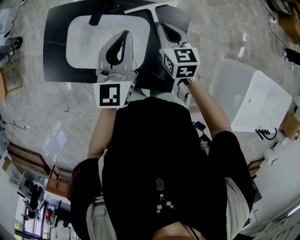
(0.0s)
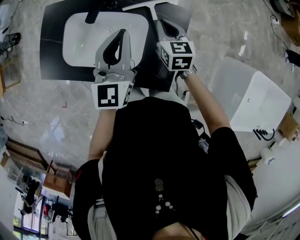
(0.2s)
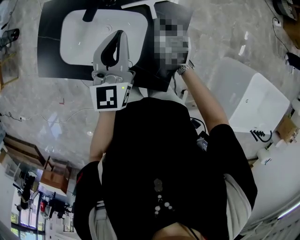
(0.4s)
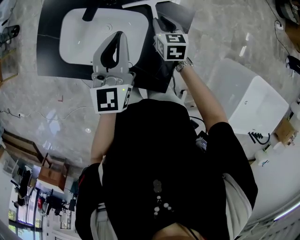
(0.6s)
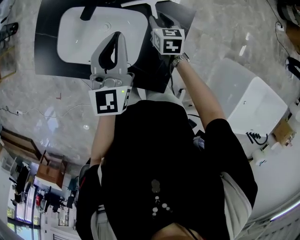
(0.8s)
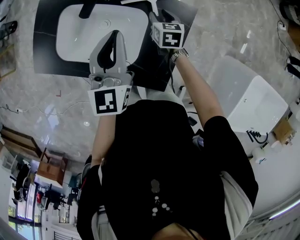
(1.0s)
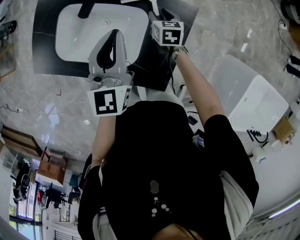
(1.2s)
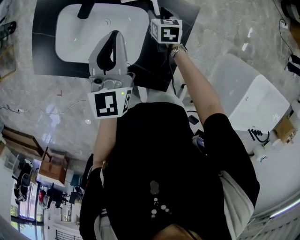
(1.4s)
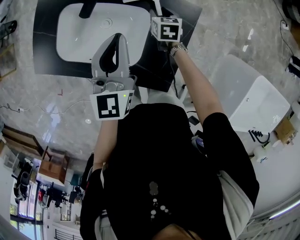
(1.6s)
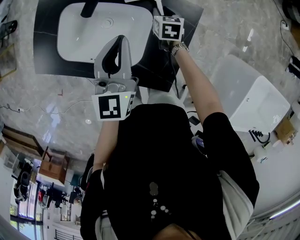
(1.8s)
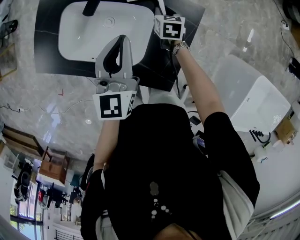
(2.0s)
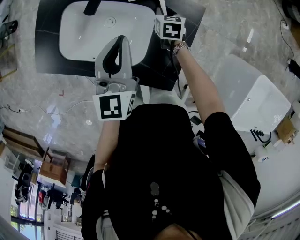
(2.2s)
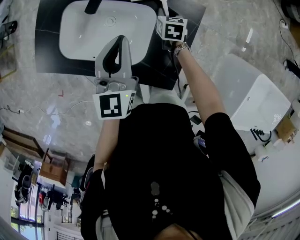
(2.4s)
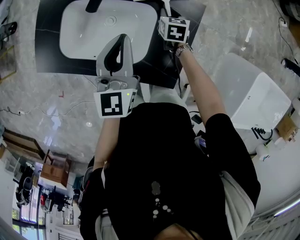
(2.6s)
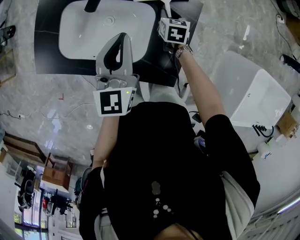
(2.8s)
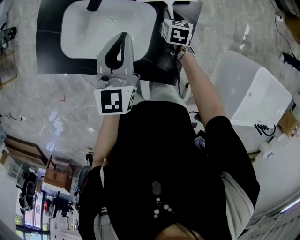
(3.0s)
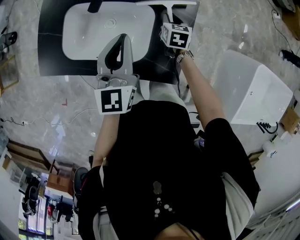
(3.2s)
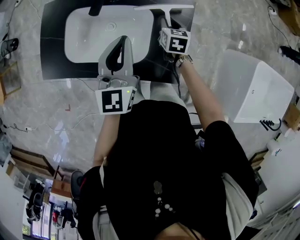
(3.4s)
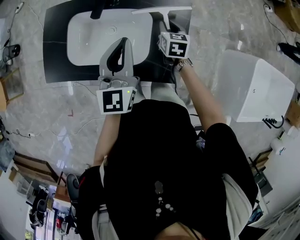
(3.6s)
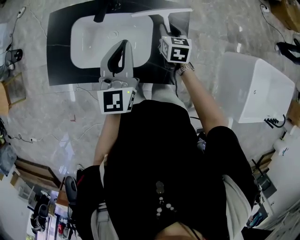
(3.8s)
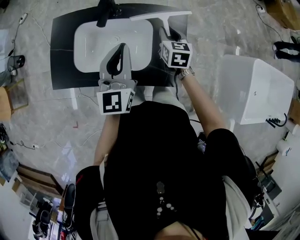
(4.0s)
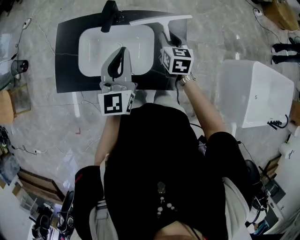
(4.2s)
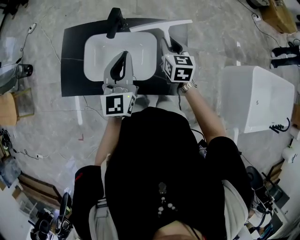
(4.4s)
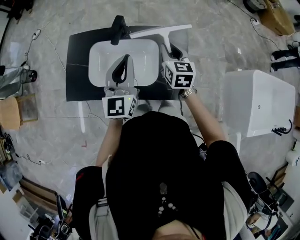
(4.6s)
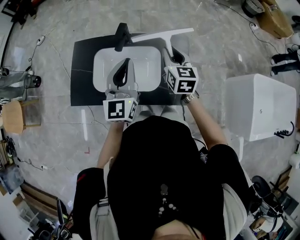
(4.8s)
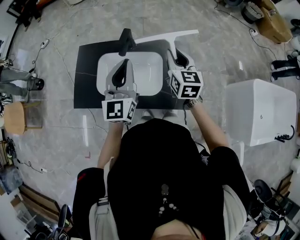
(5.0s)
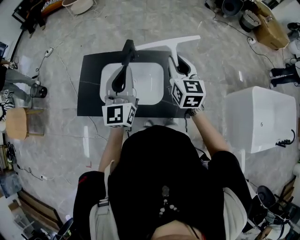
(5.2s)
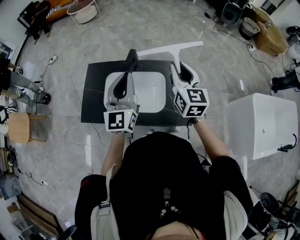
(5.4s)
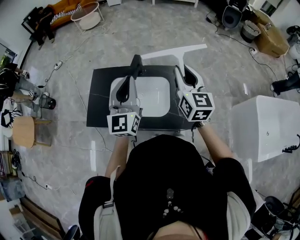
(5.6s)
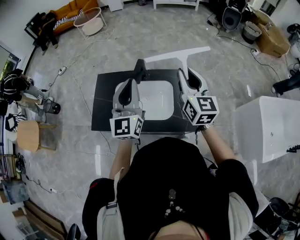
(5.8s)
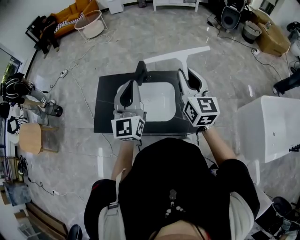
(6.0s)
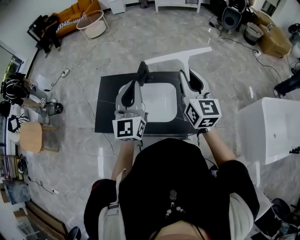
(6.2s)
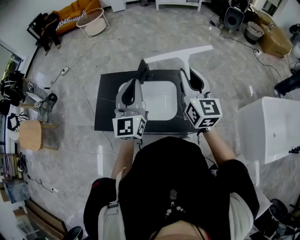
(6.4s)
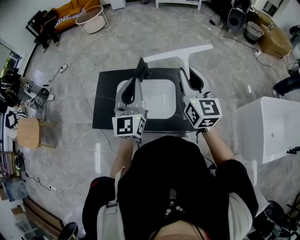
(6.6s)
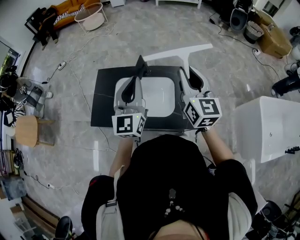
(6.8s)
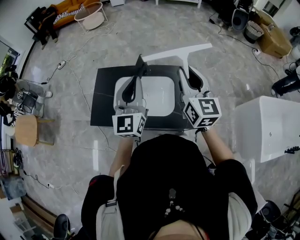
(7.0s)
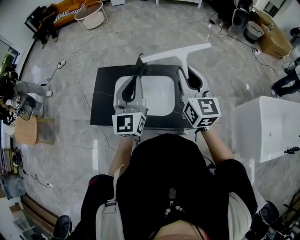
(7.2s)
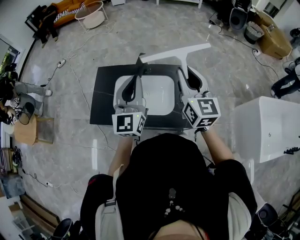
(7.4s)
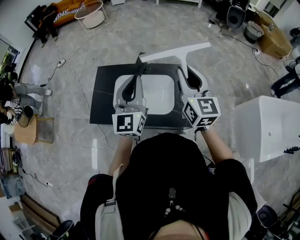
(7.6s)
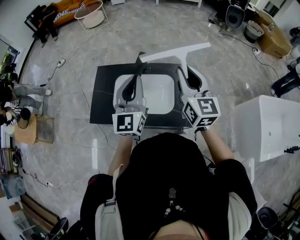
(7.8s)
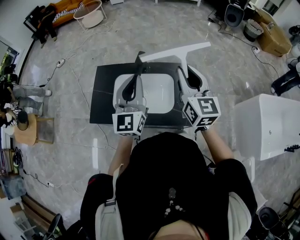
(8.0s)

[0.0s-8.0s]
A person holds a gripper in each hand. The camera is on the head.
0.0s to 1.6s: The left gripper travels downward by roughly 5 cm, while the right gripper heads downward, covering about 20 cm, swivels about 20 degrees, and opens.
1.6s to 3.2s: The left gripper changes place by some 5 cm. The right gripper goes roughly 5 cm backward.
3.2s to 4.8s: The left gripper goes approximately 15 cm upward, to the left and backward. Meanwhile the right gripper moves upward, roughly 25 cm, and rotates some 30 degrees.
4.8s to 6.4s: The left gripper travels upward by some 10 cm. The right gripper heads upward, covering about 20 cm, and swivels some 20 degrees.
6.4s to 8.0s: There are only small adjustments of the grippers.

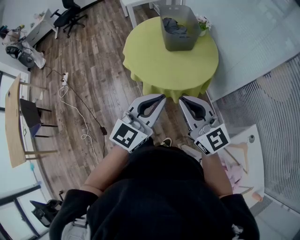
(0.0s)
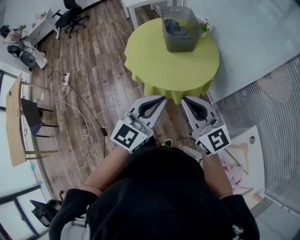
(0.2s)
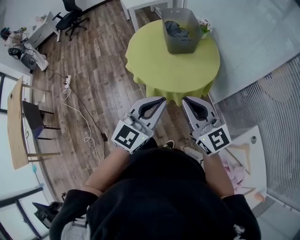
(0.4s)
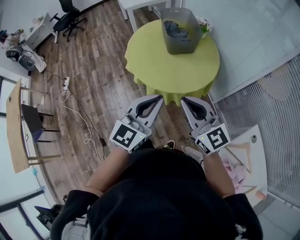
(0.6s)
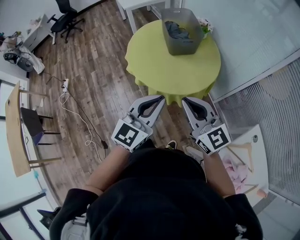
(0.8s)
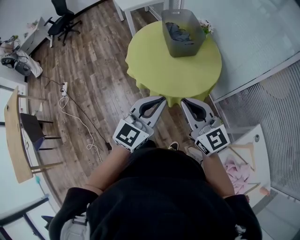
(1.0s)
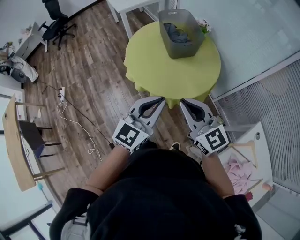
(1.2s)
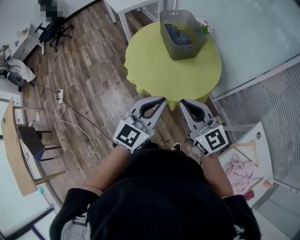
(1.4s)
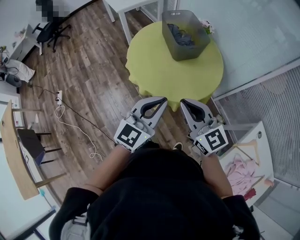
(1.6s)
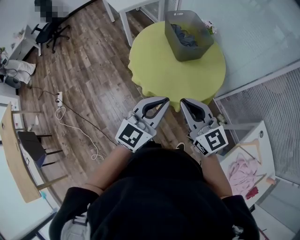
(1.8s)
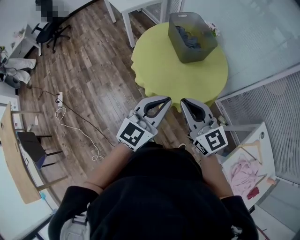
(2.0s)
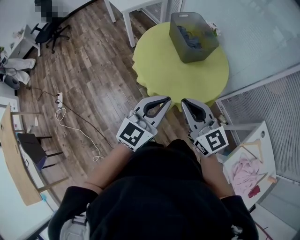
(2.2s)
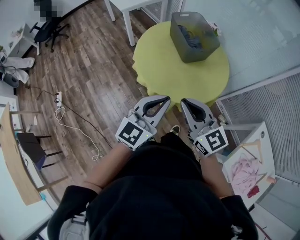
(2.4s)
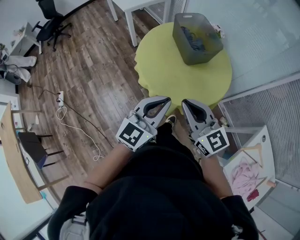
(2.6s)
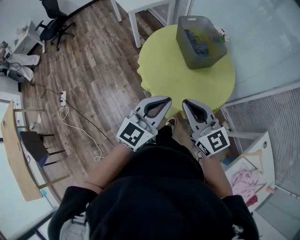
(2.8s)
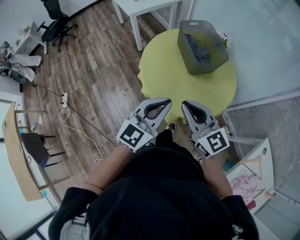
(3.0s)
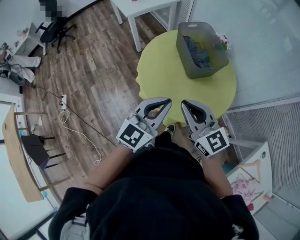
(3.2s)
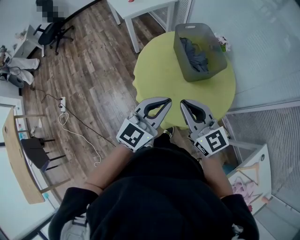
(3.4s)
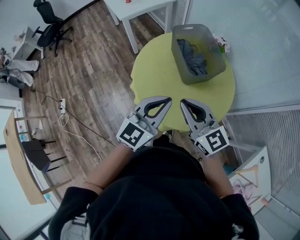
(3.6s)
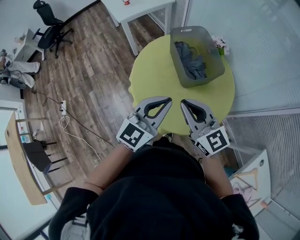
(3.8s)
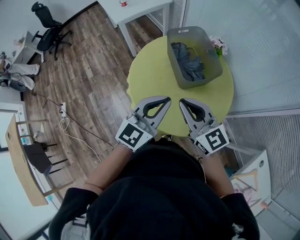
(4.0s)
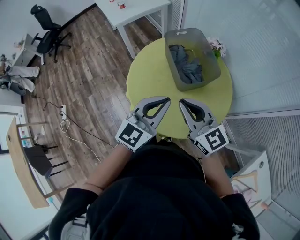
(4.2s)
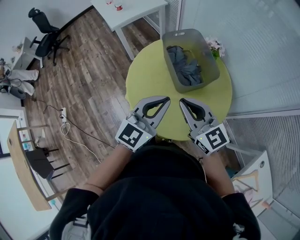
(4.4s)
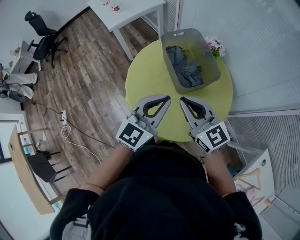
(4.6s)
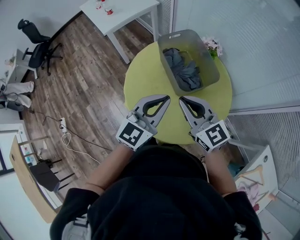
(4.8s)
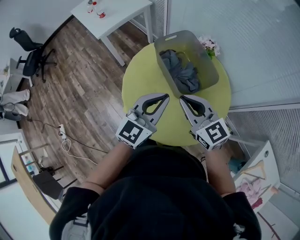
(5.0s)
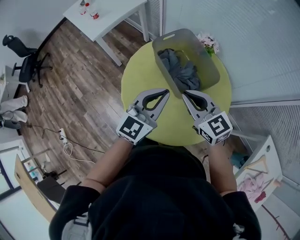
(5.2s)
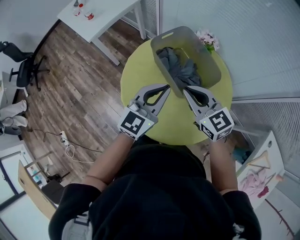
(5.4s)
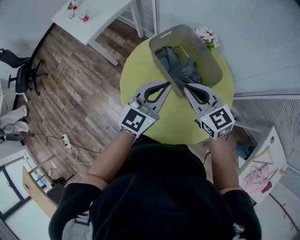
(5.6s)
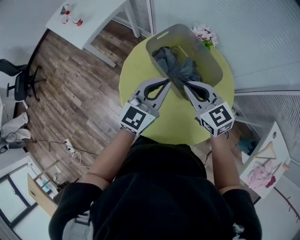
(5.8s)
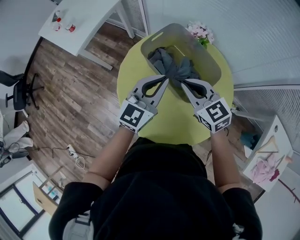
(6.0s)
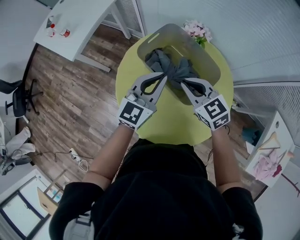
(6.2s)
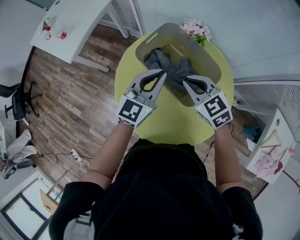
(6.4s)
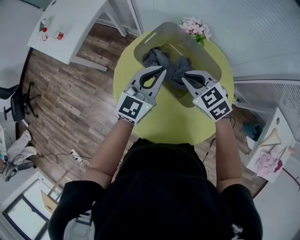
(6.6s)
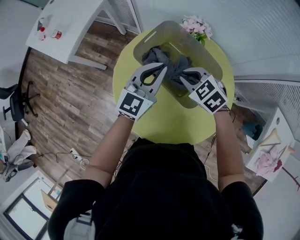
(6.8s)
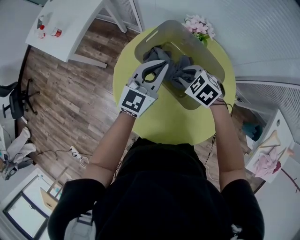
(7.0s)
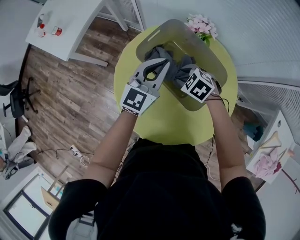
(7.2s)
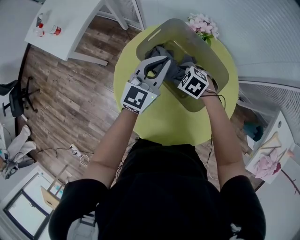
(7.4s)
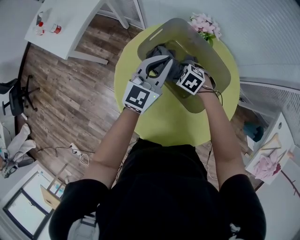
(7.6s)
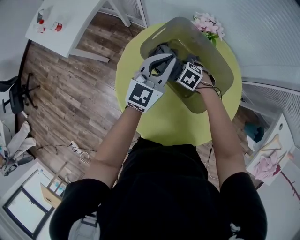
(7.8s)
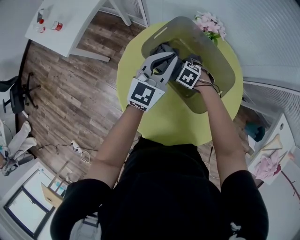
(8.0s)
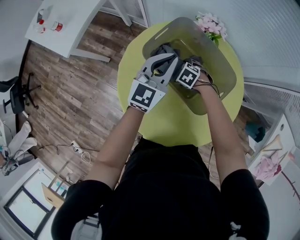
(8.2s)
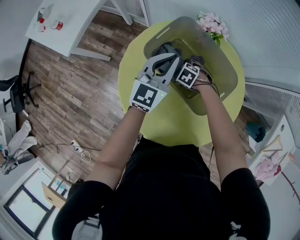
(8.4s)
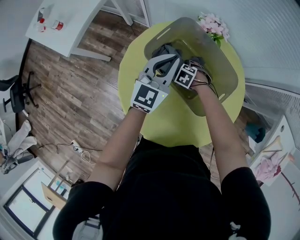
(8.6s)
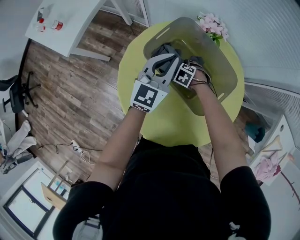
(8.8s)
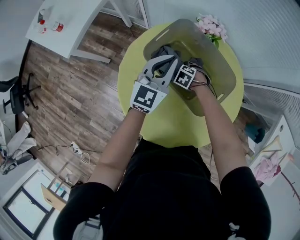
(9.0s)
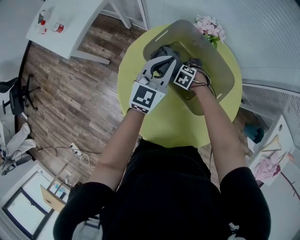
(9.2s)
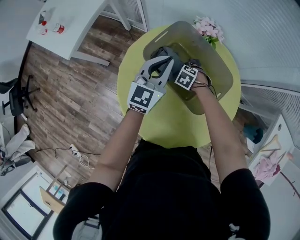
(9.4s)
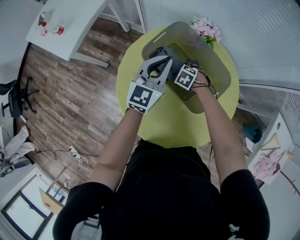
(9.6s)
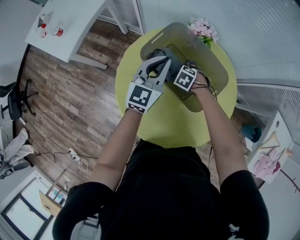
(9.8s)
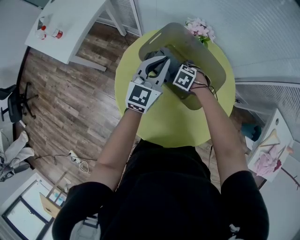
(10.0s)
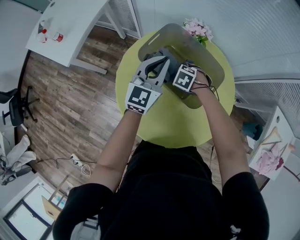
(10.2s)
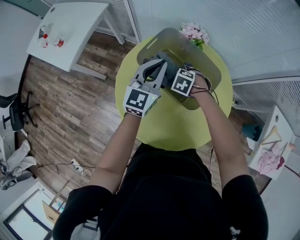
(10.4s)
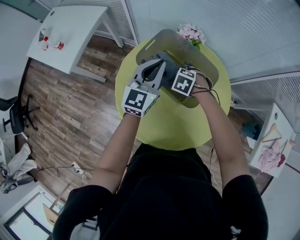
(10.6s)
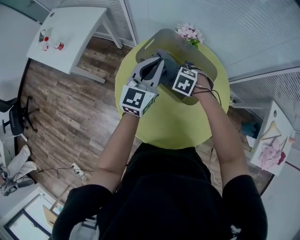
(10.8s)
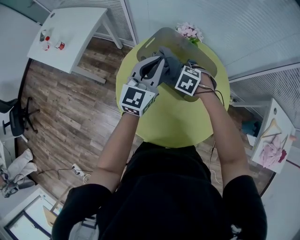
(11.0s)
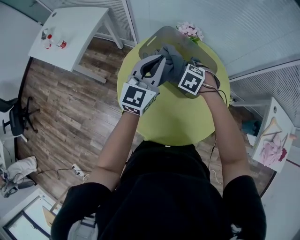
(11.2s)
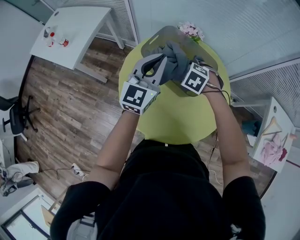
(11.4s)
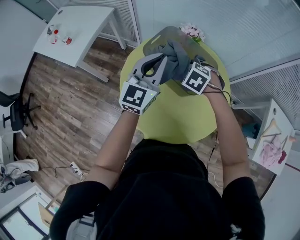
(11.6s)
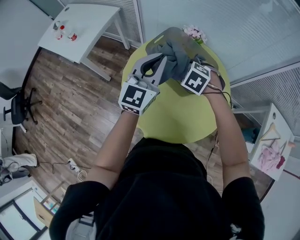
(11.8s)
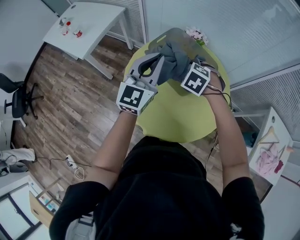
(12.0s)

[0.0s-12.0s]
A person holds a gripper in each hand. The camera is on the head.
0.0s to 1.6s: Both grippers move to the left and forward, about 20 cm.
1.6s to 3.0s: Both grippers move forward and to the left, roughly 15 cm.
3.0s to 4.4s: Both grippers move forward and to the right, roughly 20 cm.
4.4s to 6.0s: The left gripper travels forward by approximately 20 cm, and turns by some 20 degrees. The right gripper goes approximately 20 cm forward and downward, and rotates approximately 30 degrees.
6.0s to 7.6s: The right gripper goes some 25 cm downward, tips its fingers downward by about 40 degrees, and opens its fingers; the left gripper is displaced forward and downward by some 15 cm.
7.6s to 9.0s: The right gripper is displaced downward by some 10 cm.
9.0s to 10.4s: The left gripper moves upward, about 5 cm, while the right gripper moves upward, approximately 15 cm.
10.4s to 12.0s: The right gripper travels upward by some 15 cm; the left gripper ends up roughly 15 cm from where it was.

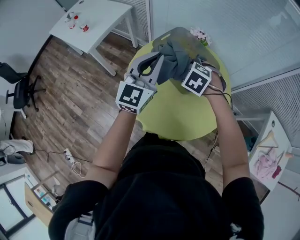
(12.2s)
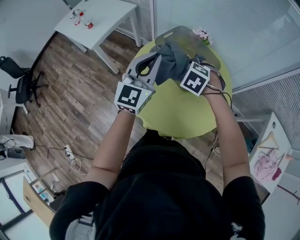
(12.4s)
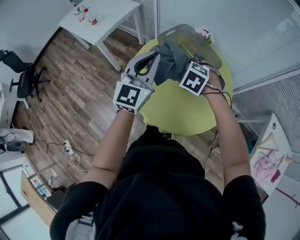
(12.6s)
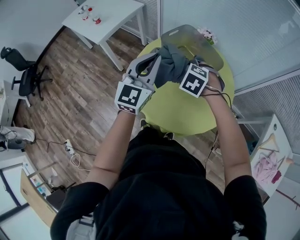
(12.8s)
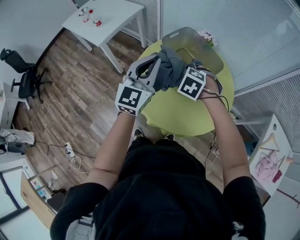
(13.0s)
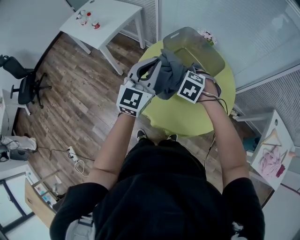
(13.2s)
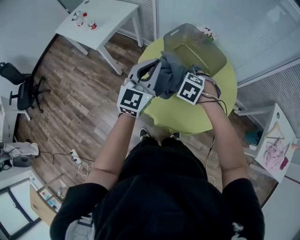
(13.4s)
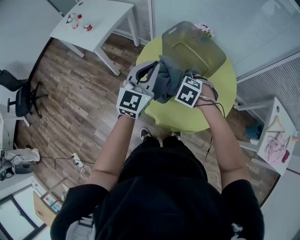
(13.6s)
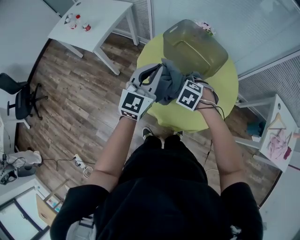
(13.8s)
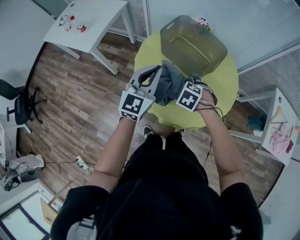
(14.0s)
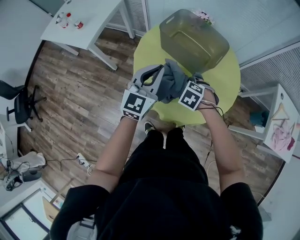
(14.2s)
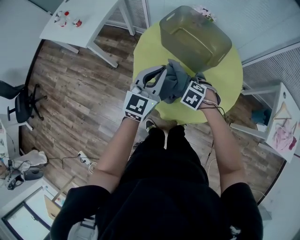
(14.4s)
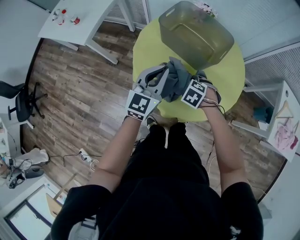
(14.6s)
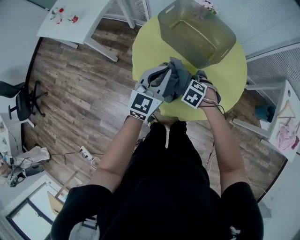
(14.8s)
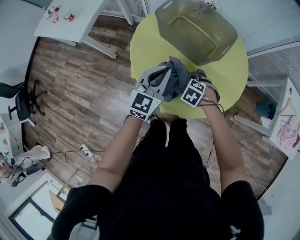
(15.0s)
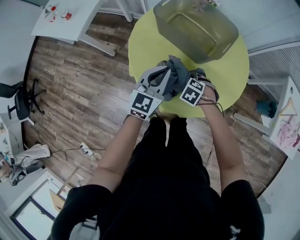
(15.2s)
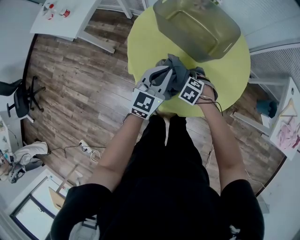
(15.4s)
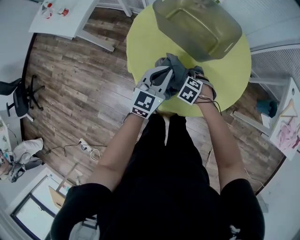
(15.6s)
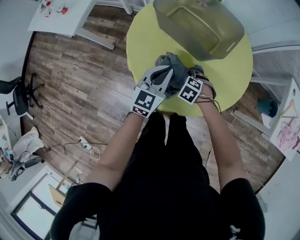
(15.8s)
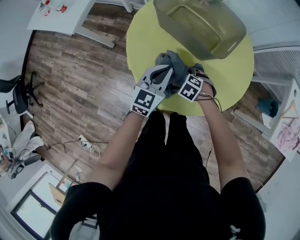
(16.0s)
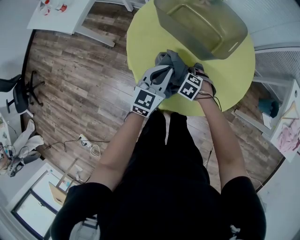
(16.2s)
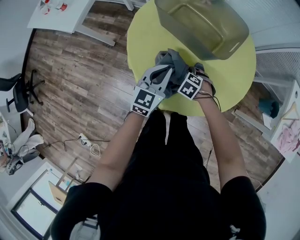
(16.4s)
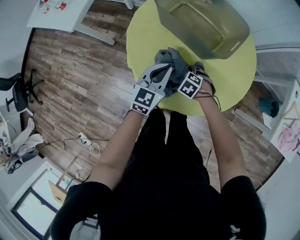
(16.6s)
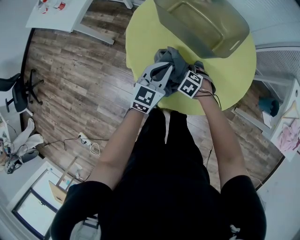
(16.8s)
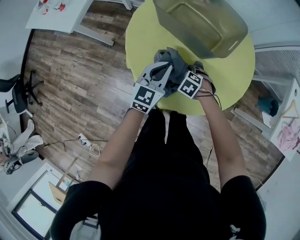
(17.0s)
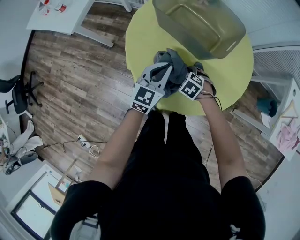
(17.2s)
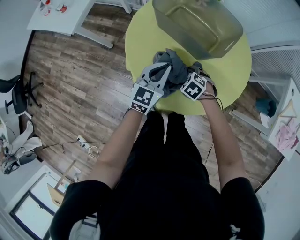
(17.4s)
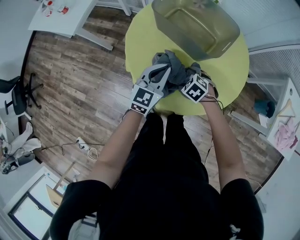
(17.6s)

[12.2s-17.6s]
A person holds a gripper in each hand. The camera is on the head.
12.2s to 13.6s: The left gripper goes some 10 cm to the left and backward, while the right gripper travels backward and to the left by roughly 15 cm.
13.6s to 15.0s: The two grippers go approximately 15 cm downward.
15.0s to 16.2s: The grippers both shift downward by about 10 cm.
16.2s to 17.6s: The right gripper is displaced upward by about 5 cm.
